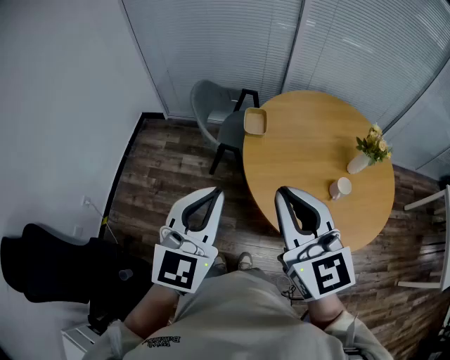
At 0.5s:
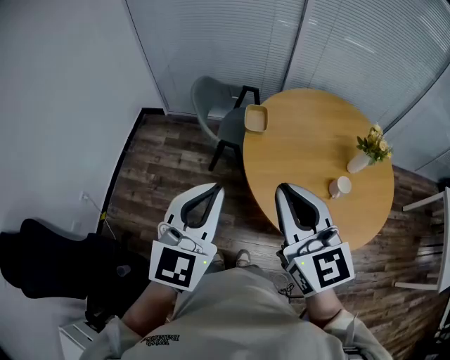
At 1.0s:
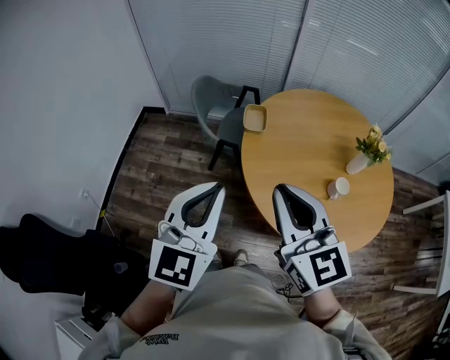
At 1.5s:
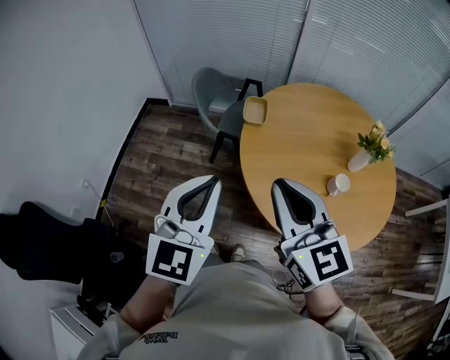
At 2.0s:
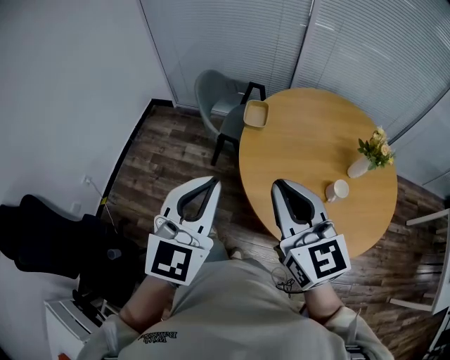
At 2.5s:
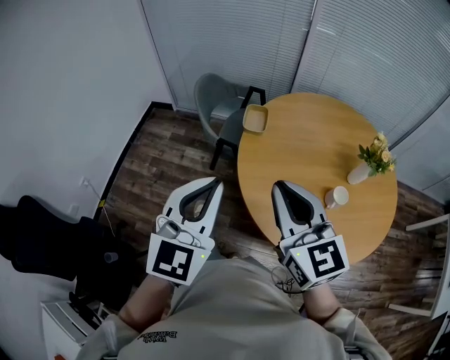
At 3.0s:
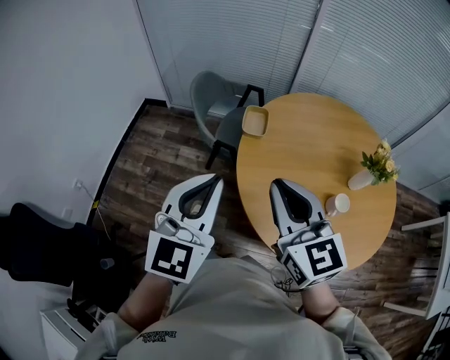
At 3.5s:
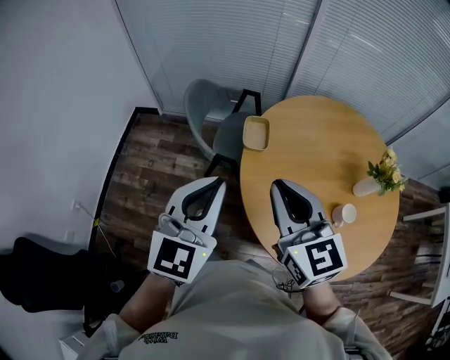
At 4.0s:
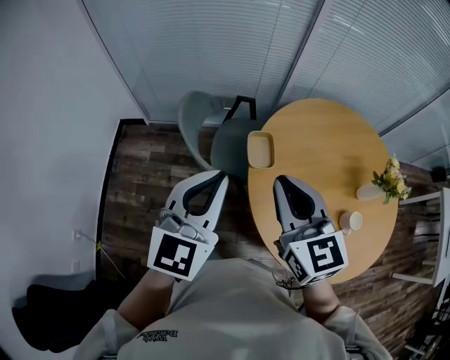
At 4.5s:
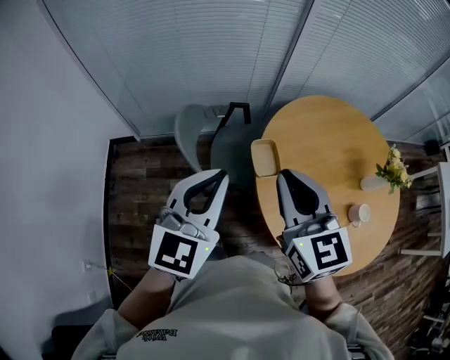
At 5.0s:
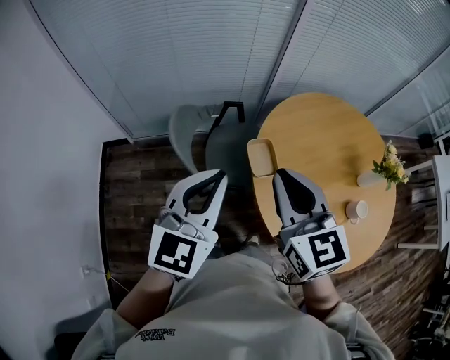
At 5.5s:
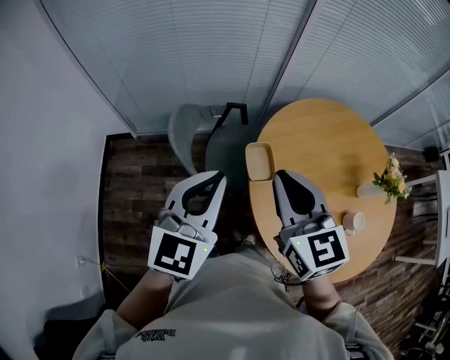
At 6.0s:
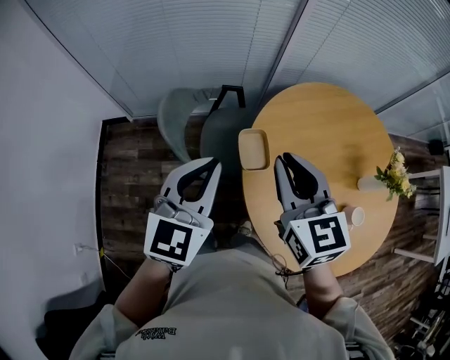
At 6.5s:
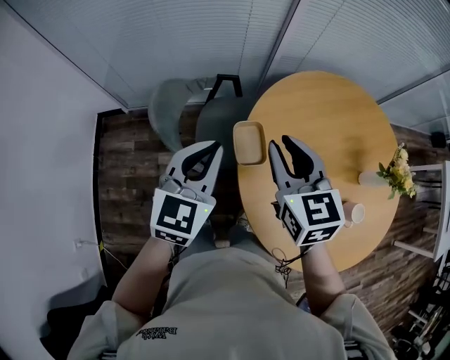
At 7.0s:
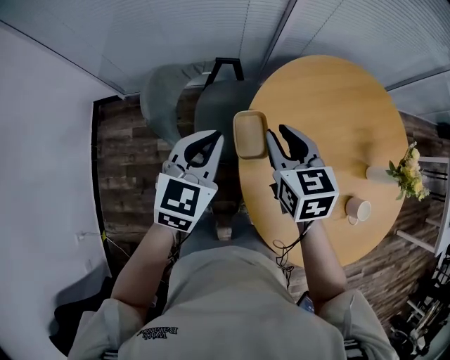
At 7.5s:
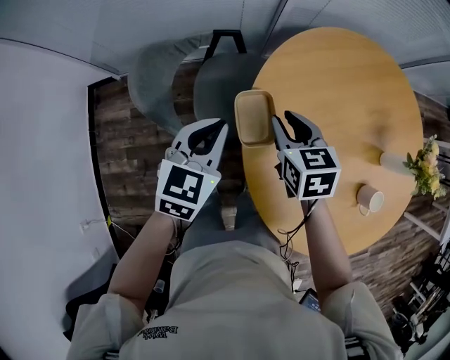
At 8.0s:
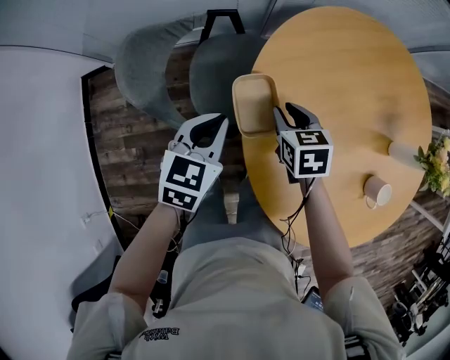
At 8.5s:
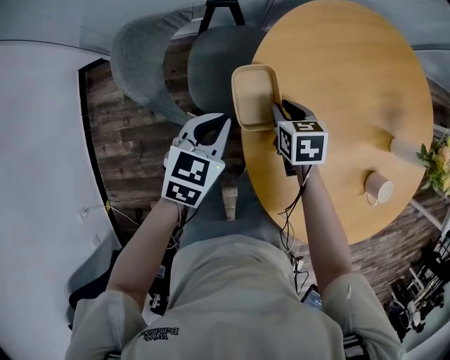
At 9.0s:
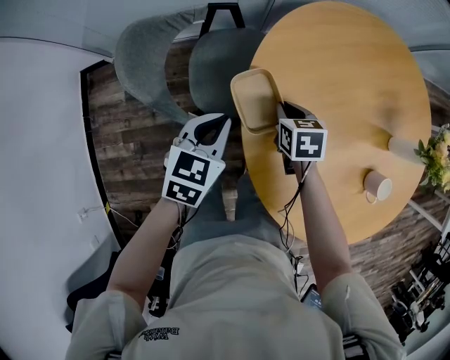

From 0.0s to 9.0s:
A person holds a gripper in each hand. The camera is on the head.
From 0.0s to 2.0s: The grippers both shift to the right by roughly 5 cm.
From 2.0s to 4.5s: Both grippers move forward and to the left, about 35 cm. The right gripper changes its angle by some 20 degrees; the left gripper swivels about 20 degrees.
From 4.5s to 7.0s: Both grippers move downward, forward and to the right, some 25 cm. The right gripper turns by some 20 degrees.
From 7.0s to 9.0s: The grippers both shift downward by some 20 cm. The right gripper changes its angle by approximately 30 degrees.

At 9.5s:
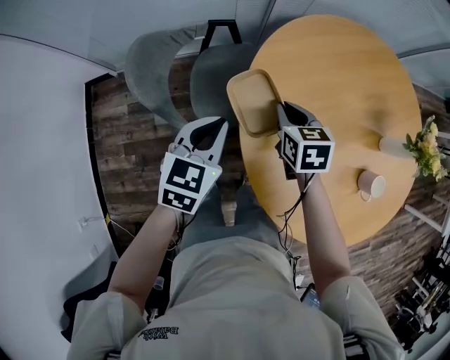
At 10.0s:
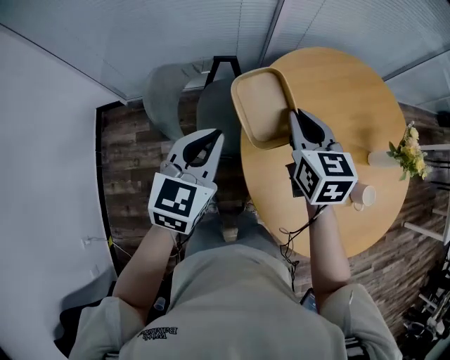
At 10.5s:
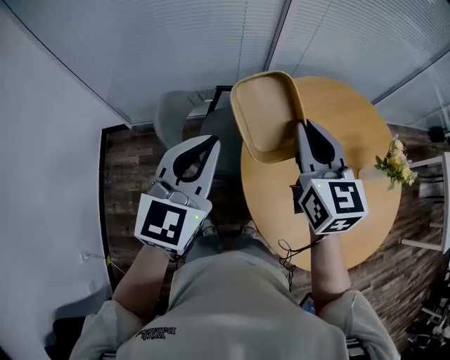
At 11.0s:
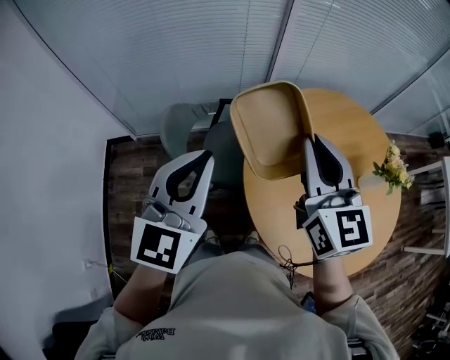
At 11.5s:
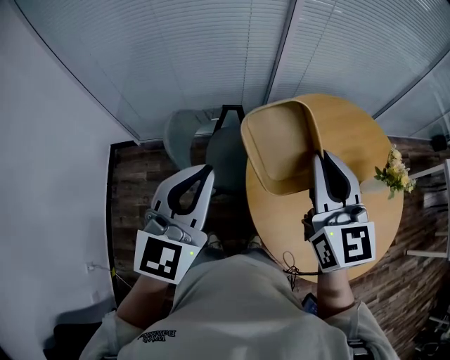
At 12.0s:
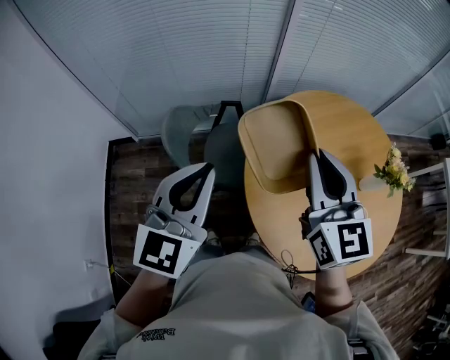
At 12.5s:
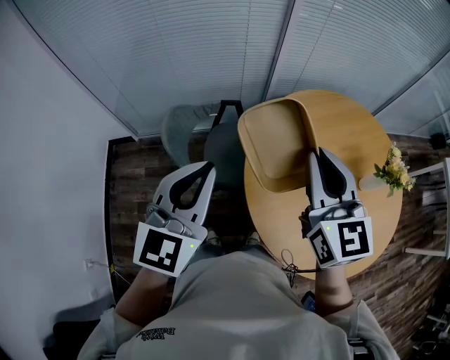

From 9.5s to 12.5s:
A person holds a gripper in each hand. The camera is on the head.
From 9.5s to 11.0s: The grippers both shift upward by about 35 cm. The left gripper turns by about 30 degrees, while the right gripper tilts its fingers approximately 40 degrees upward.
From 11.0s to 12.5s: There are only small adjustments of the grippers.

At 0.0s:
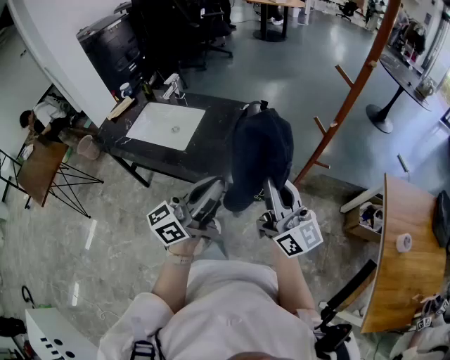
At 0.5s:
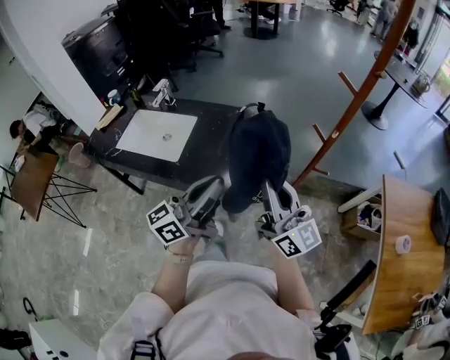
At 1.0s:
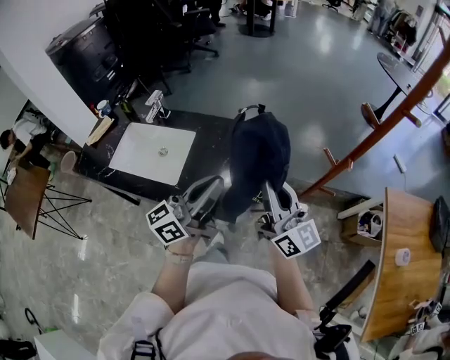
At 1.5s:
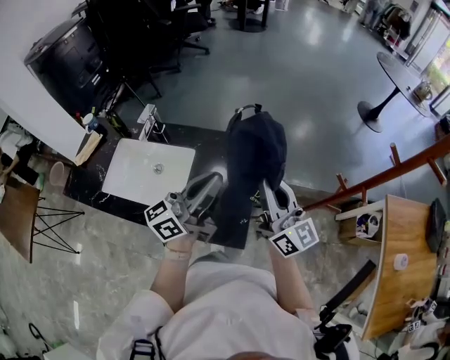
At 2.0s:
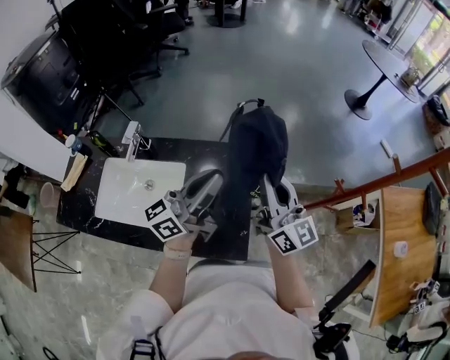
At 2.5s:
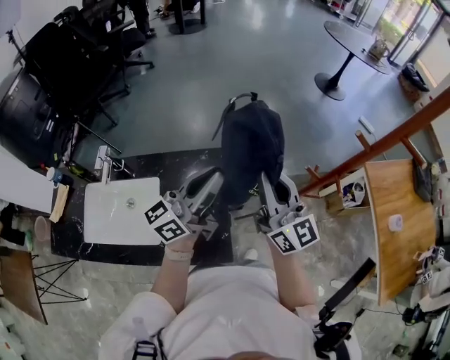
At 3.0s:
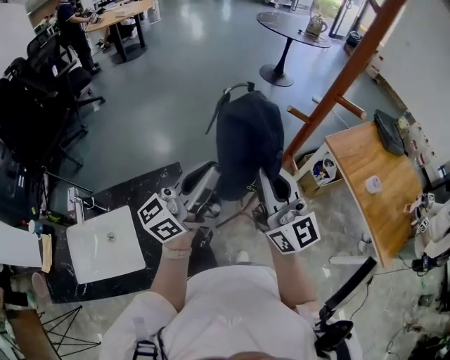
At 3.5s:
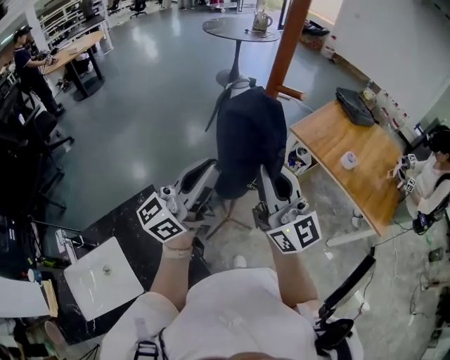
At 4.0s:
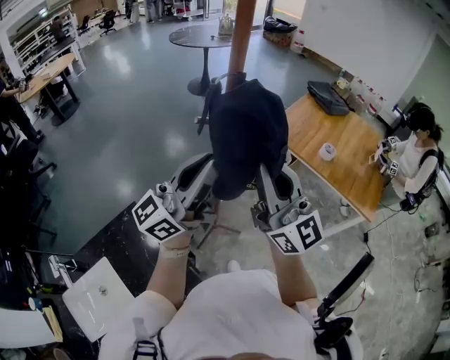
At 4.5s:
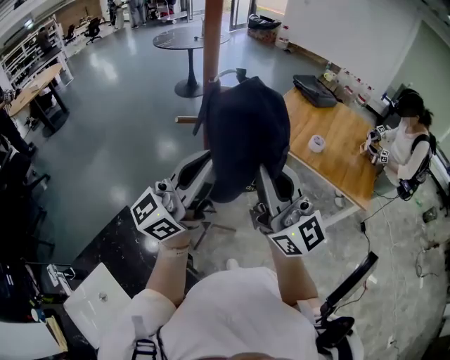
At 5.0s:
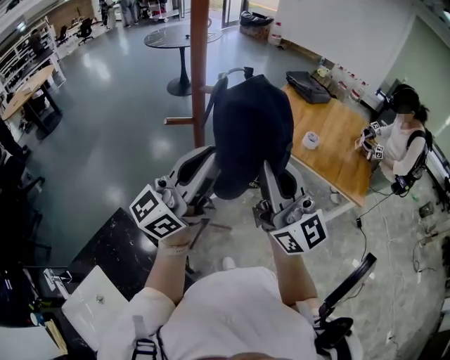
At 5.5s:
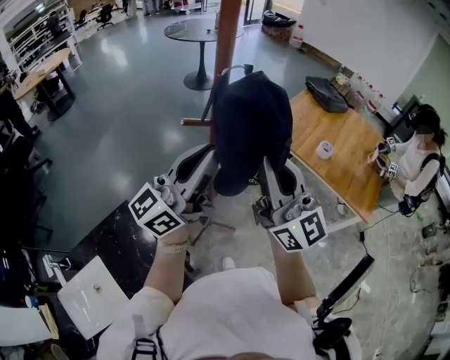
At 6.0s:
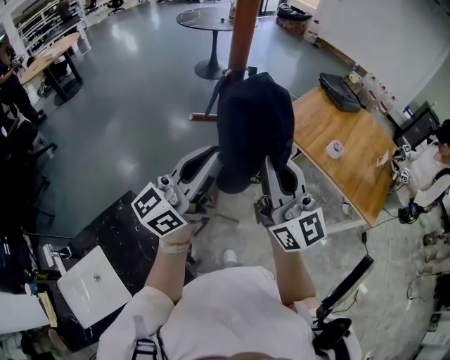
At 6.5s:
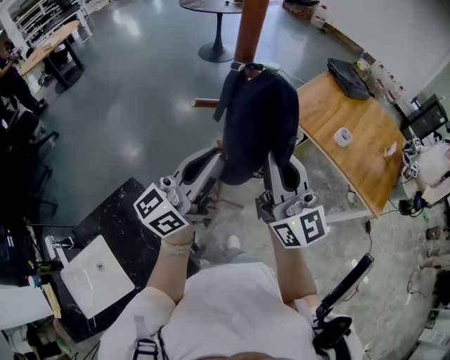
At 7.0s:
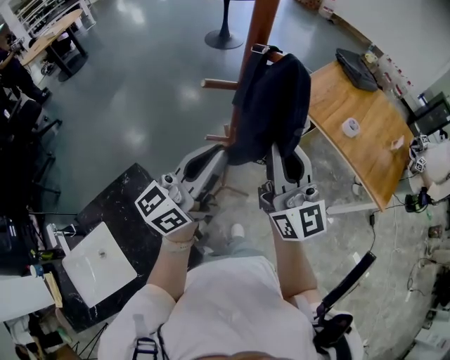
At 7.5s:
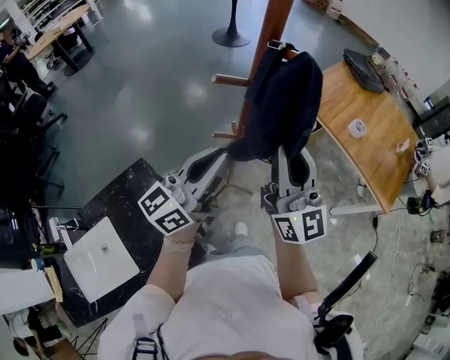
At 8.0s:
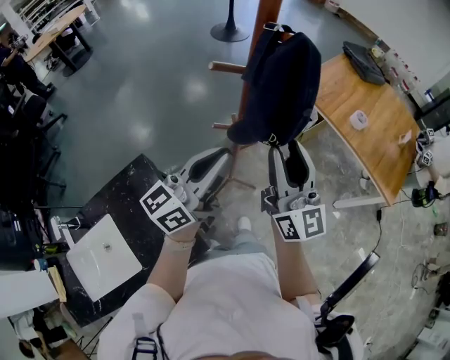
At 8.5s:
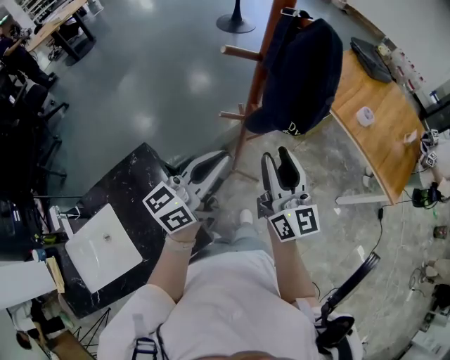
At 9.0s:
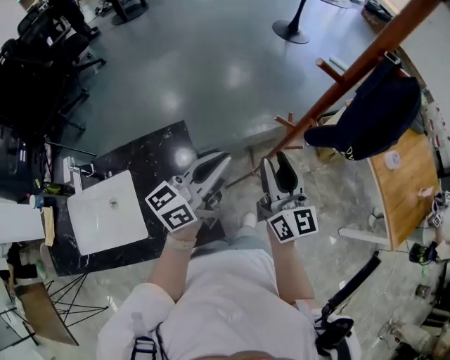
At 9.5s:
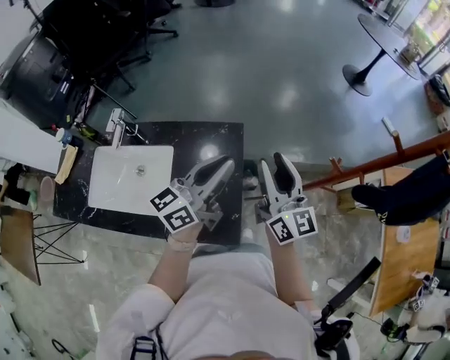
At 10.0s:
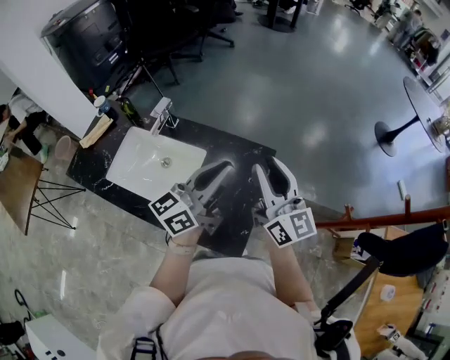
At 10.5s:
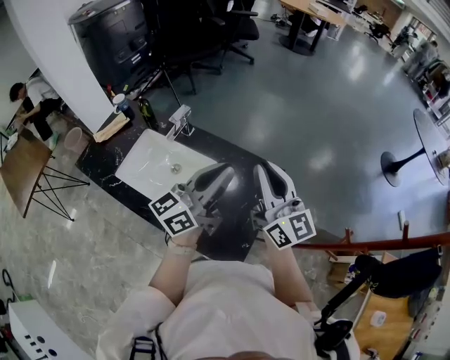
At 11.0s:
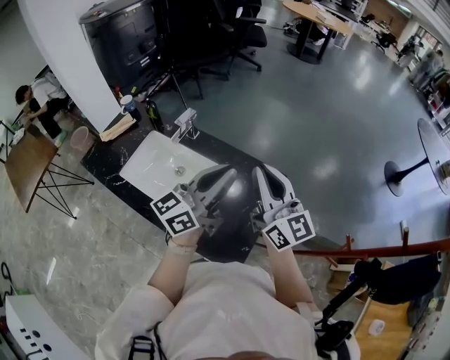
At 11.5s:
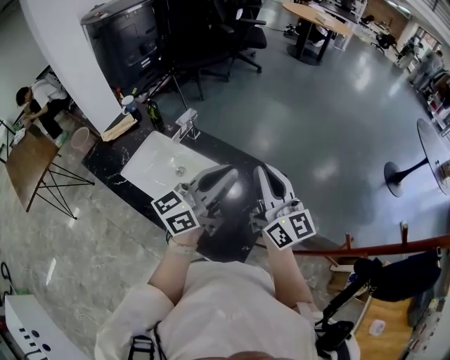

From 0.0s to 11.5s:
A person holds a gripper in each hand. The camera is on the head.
From 0.0s to 2.0s: The two grippers travel together, forward, some 40 cm.
From 2.0s to 4.0s: The left gripper moves approximately 40 cm, and rotates approximately 50 degrees; the right gripper ends up some 40 cm from where it was, and changes its angle by roughly 50 degrees.
From 4.0s to 6.0s: The two grippers go approximately 5 cm forward.
From 6.0s to 7.5s: The grippers both shift downward by about 10 cm.
From 7.5s to 9.5s: The right gripper shifts by roughly 35 cm, swivels about 50 degrees, and opens up, while the left gripper changes place by about 30 cm, and swivels about 40 degrees.
From 9.5s to 11.5s: The right gripper ends up approximately 20 cm from where it was, rotates about 30 degrees, and closes. The left gripper changes place by about 15 cm, and swivels about 30 degrees.

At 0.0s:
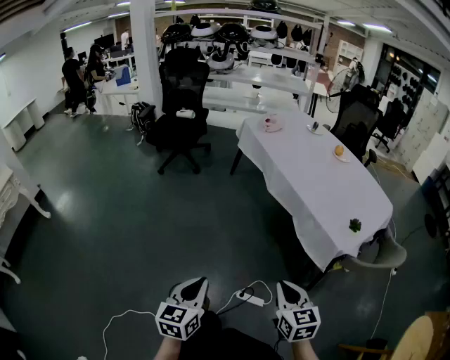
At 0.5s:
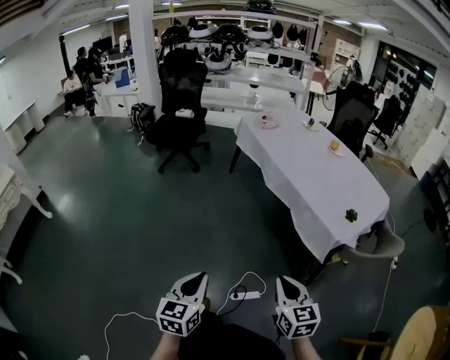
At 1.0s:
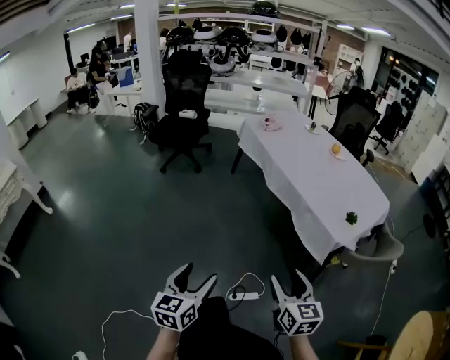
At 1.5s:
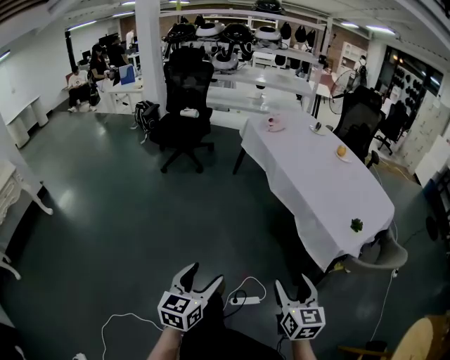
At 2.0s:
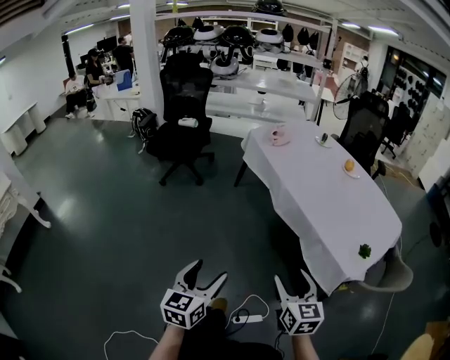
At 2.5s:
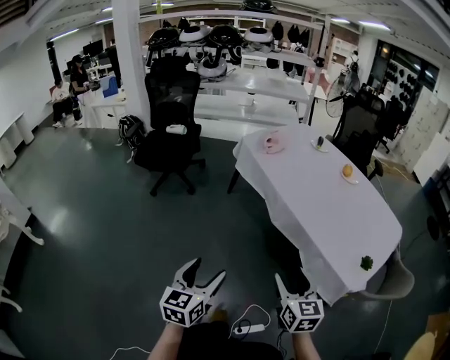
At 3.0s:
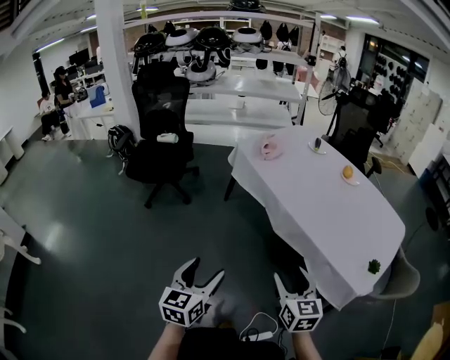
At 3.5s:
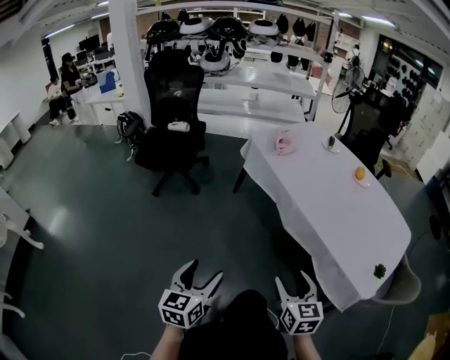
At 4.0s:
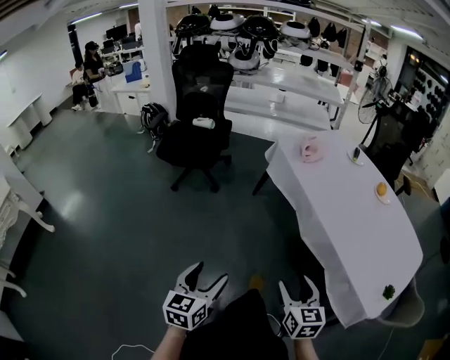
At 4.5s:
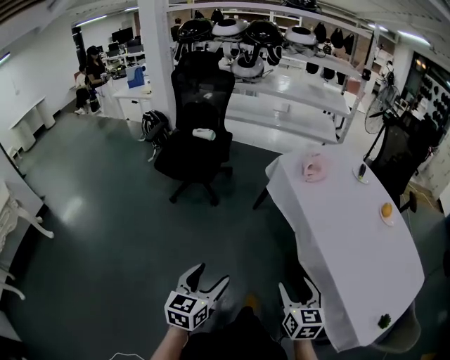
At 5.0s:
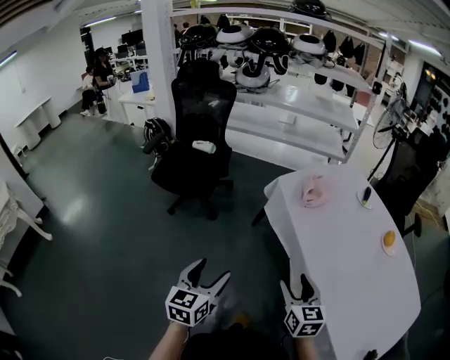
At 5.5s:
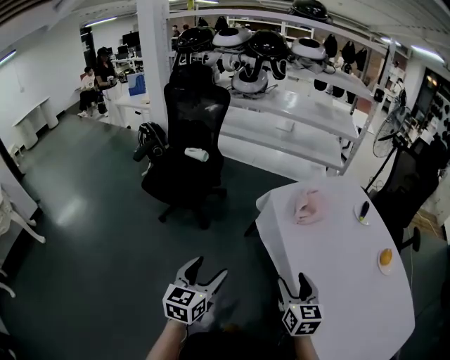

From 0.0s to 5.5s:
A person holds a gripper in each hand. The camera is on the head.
From 0.0s to 2.0s: Both grippers move forward, roughly 15 cm. The right gripper opens; the left gripper opens.
From 2.0s to 3.5s: The two grippers go some 15 cm forward and to the left.
From 3.5s to 5.5s: The grippers both shift forward by approximately 35 cm.
